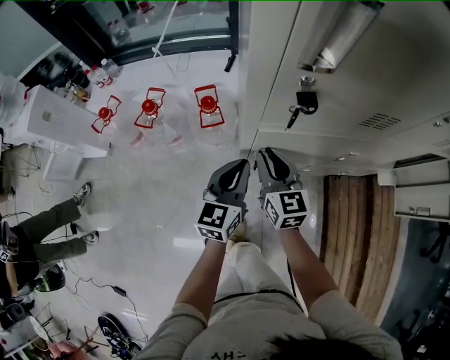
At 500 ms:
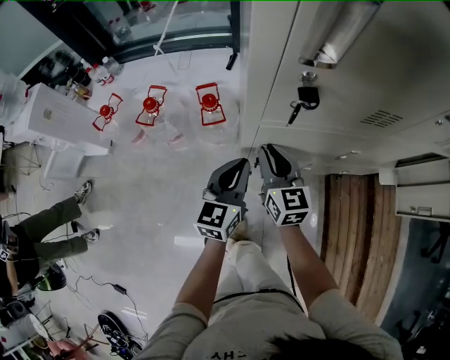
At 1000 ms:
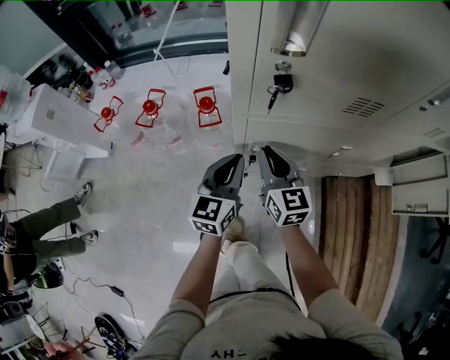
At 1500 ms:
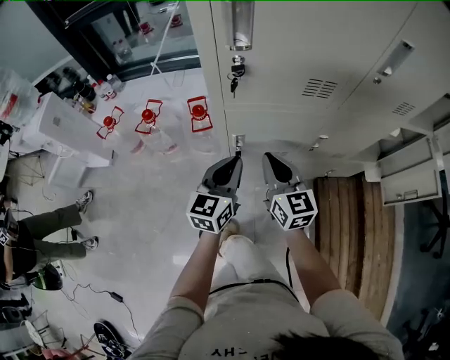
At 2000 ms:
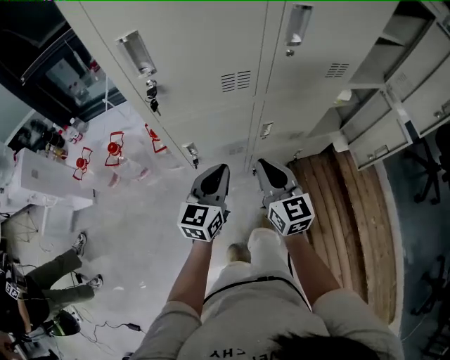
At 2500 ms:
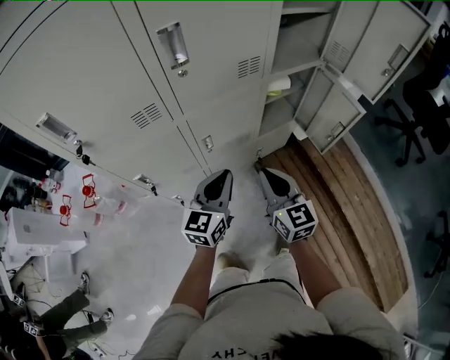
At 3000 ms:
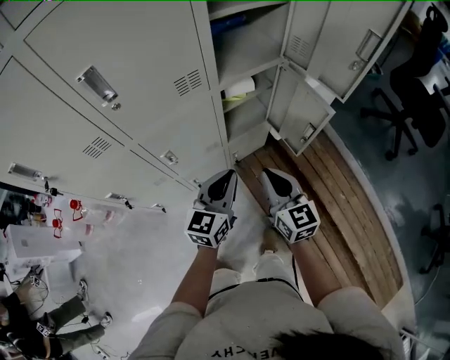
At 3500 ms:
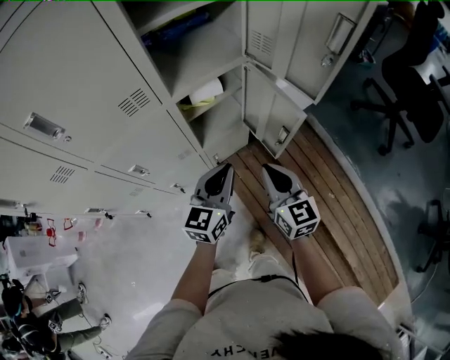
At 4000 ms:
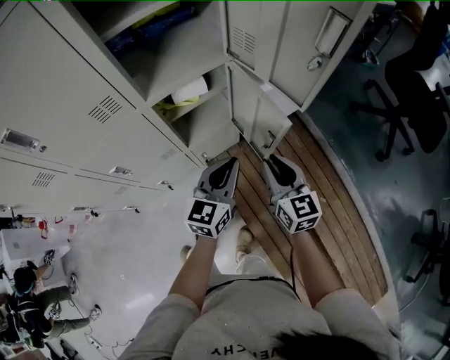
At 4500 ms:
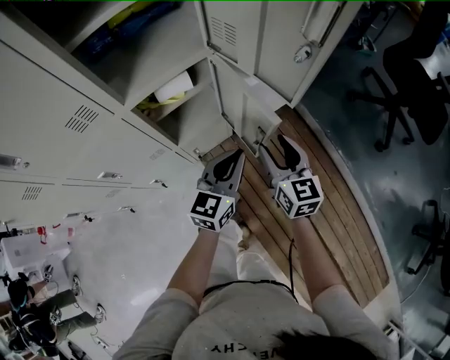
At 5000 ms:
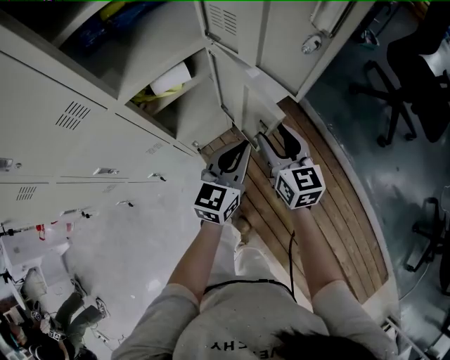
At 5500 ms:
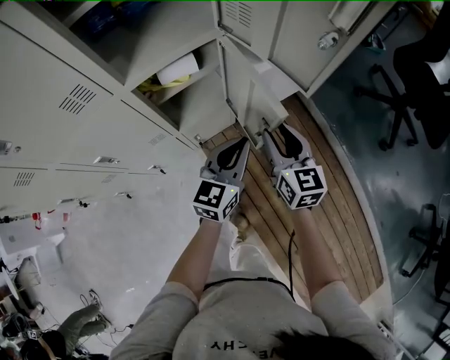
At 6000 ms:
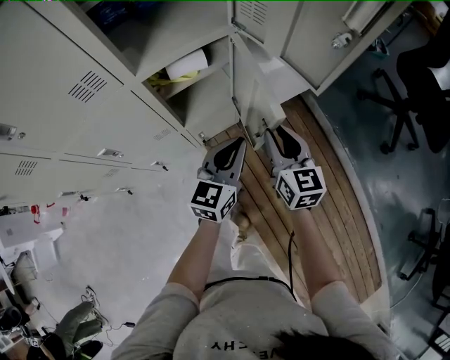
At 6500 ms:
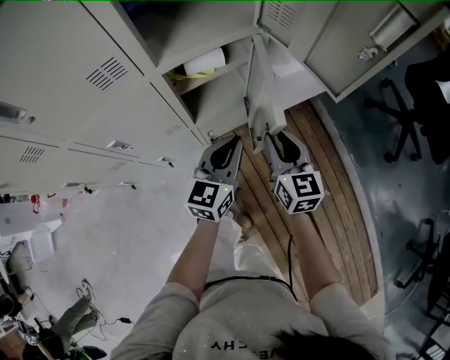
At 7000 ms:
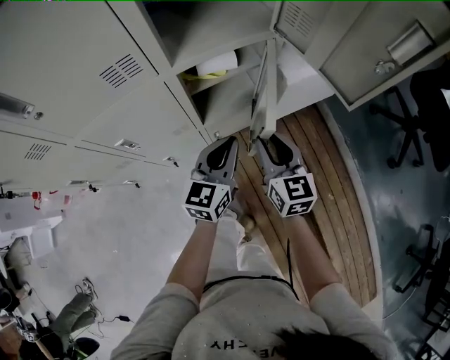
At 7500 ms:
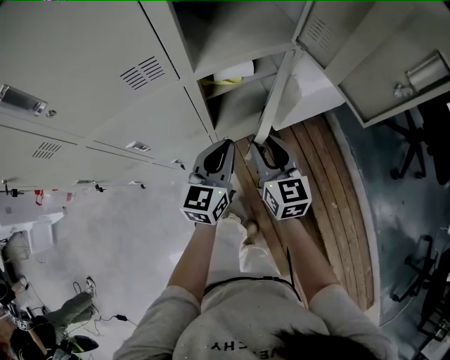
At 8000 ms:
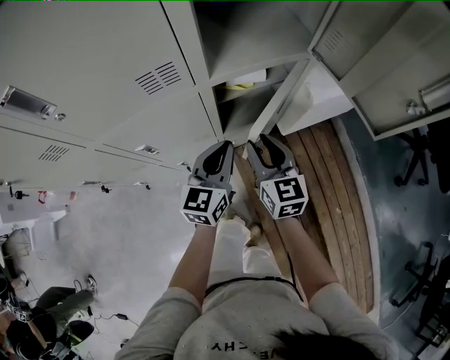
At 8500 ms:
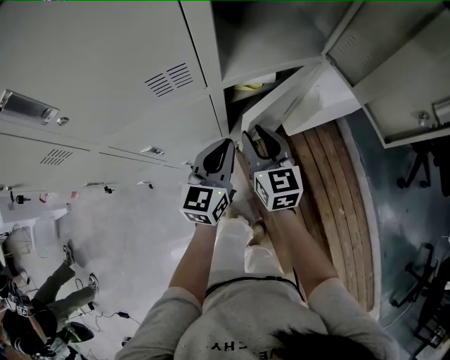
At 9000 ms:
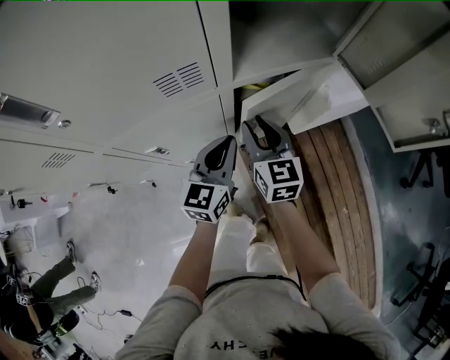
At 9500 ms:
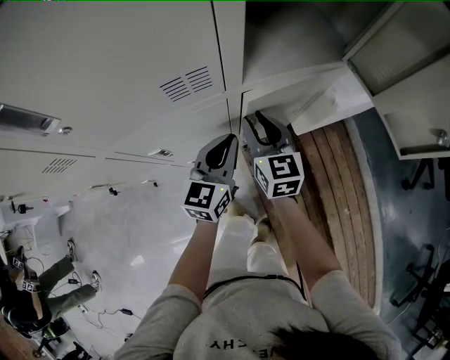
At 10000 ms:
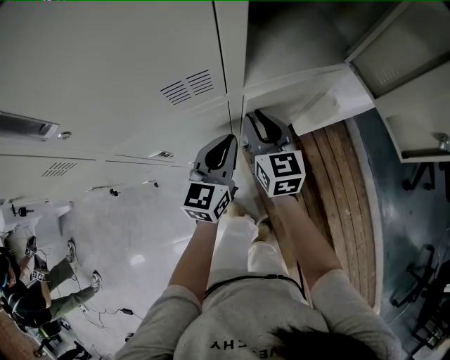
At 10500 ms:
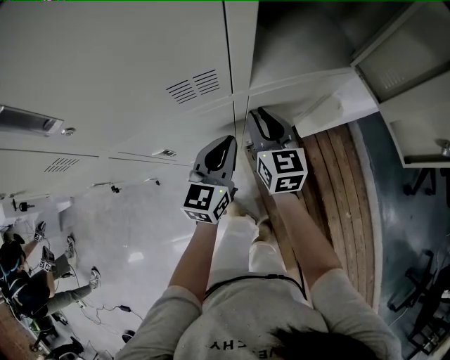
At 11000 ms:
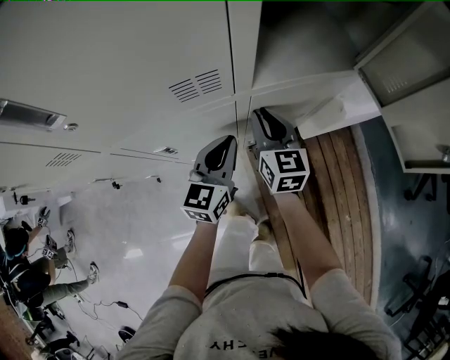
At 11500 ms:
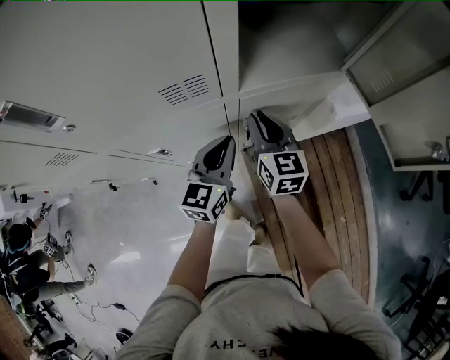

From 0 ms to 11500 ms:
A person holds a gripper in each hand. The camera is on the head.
From 0 ms to 2000 ms: The two grippers go roughly 25 cm to the right, backward and upward.
From 2000 ms to 4000 ms: The two grippers travel together, to the right, about 60 cm. The right gripper turns by approximately 20 degrees. The left gripper turns by roughly 20 degrees.
From 4000 ms to 6000 ms: The right gripper shifts by some 5 cm, and opens, then closes once more.
From 6000 ms to 7500 ms: Both grippers travel together to the left, about 15 cm.
From 7500 ms to 9500 ms: The two grippers go approximately 15 cm to the left and forward.
From 9500 ms to 11500 ms: The grippers move only a little.

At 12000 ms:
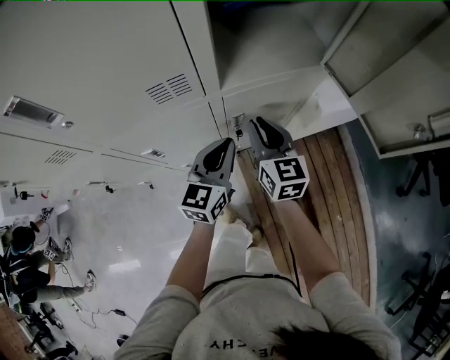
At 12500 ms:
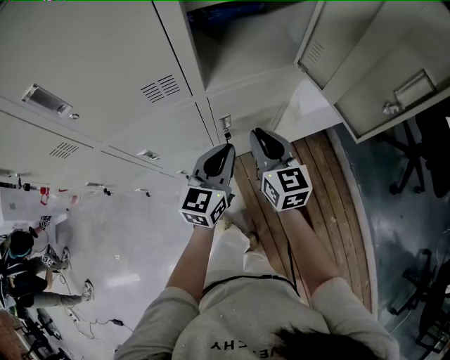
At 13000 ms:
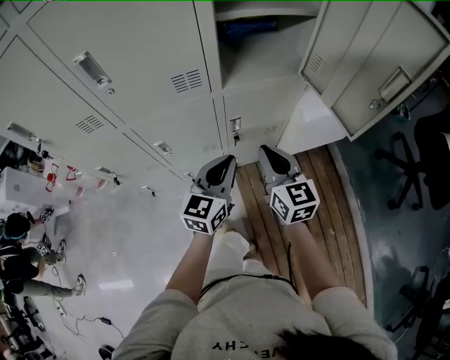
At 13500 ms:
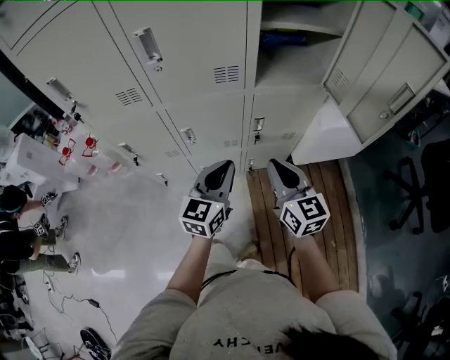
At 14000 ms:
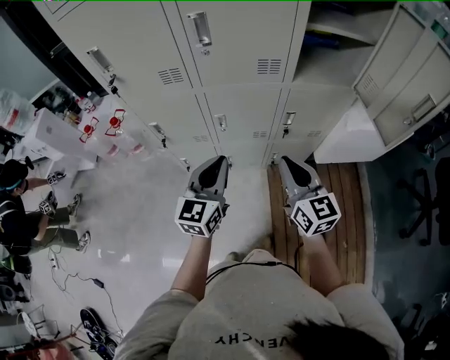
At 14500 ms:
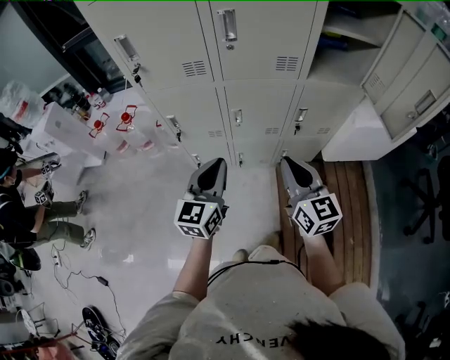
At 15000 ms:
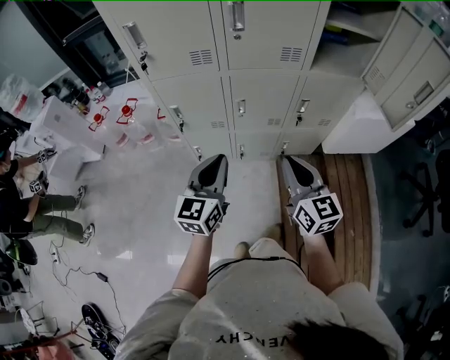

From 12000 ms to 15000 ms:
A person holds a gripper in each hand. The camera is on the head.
From 12000 ms to 13500 ms: The two grippers go some 20 cm backward and upward.
From 13500 ms to 15000 ms: The two grippers go about 20 cm to the left and backward.

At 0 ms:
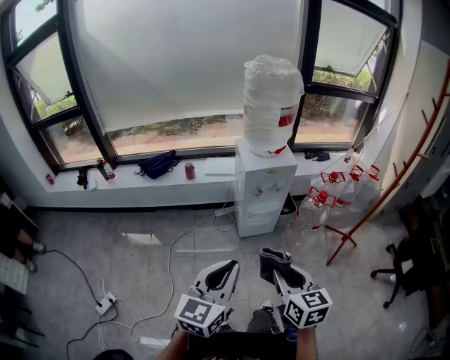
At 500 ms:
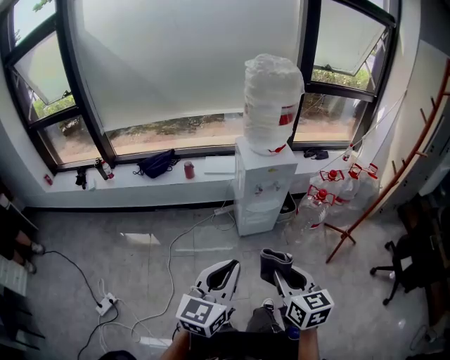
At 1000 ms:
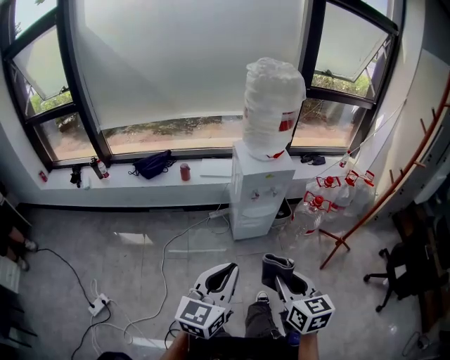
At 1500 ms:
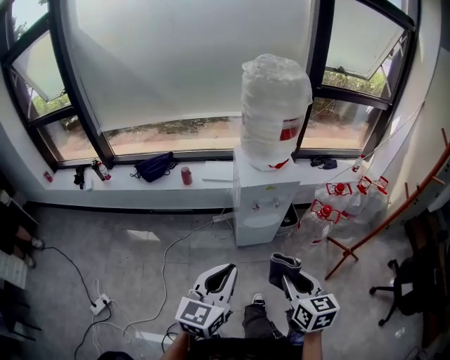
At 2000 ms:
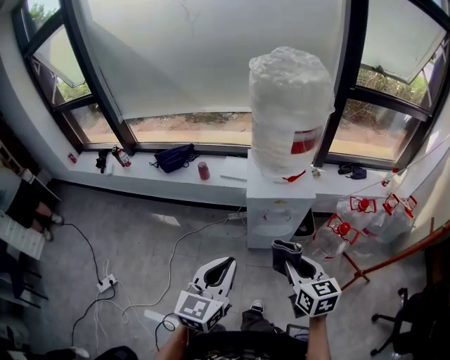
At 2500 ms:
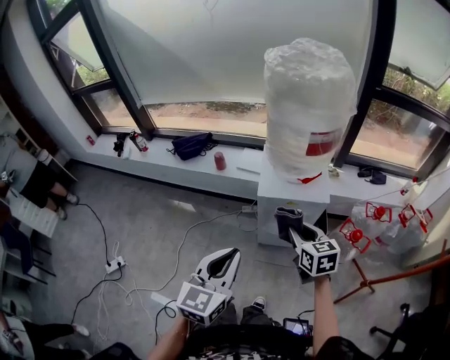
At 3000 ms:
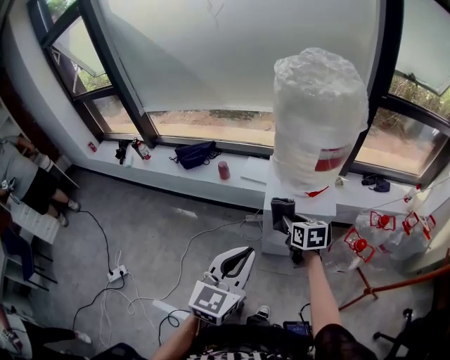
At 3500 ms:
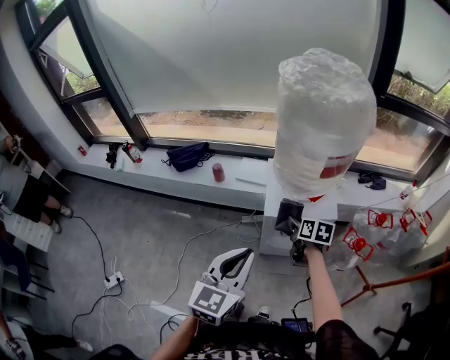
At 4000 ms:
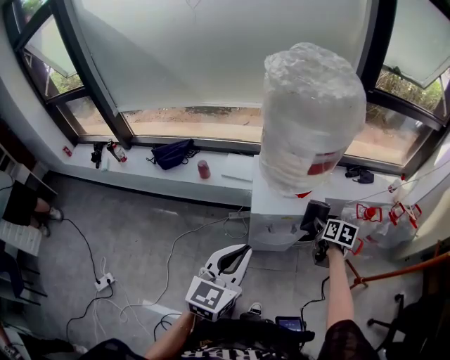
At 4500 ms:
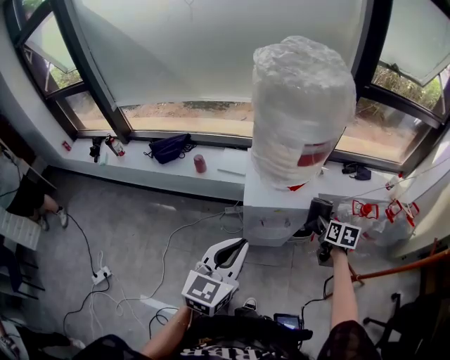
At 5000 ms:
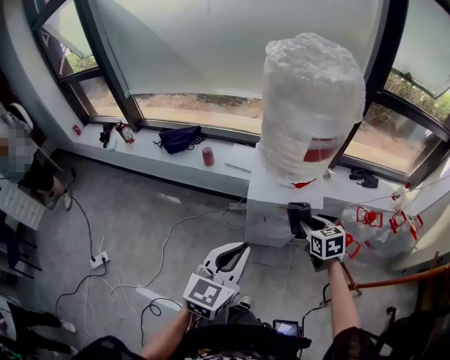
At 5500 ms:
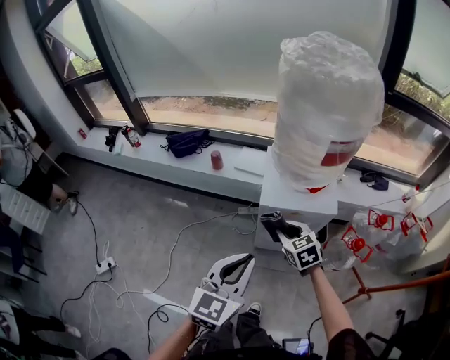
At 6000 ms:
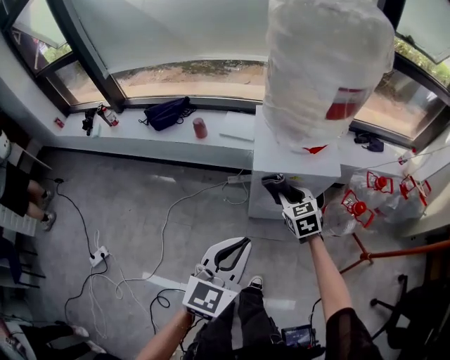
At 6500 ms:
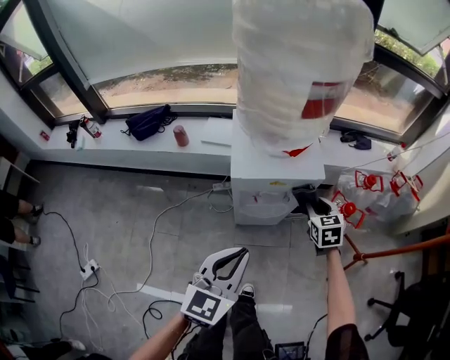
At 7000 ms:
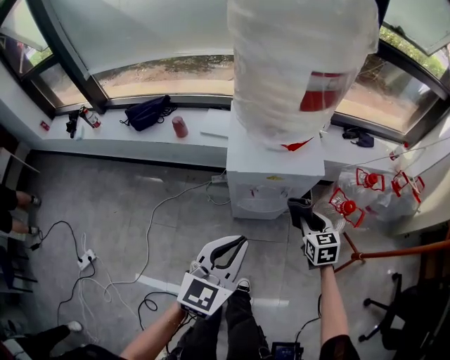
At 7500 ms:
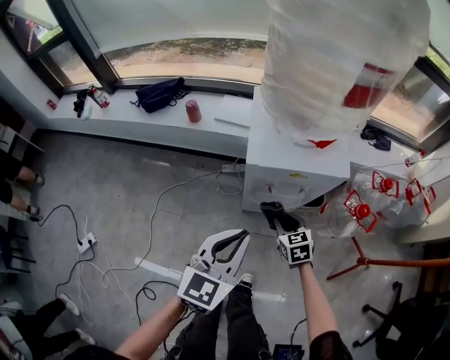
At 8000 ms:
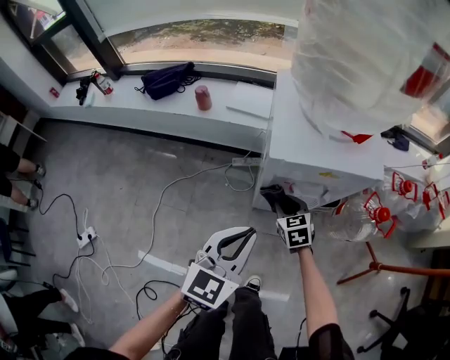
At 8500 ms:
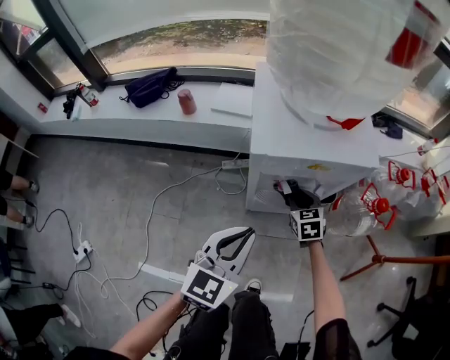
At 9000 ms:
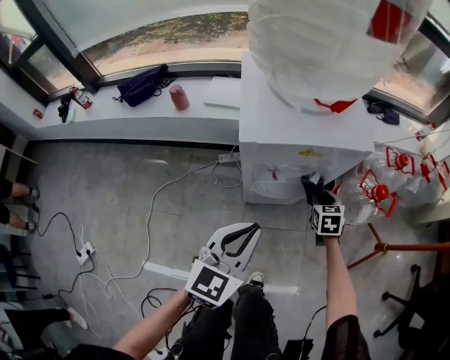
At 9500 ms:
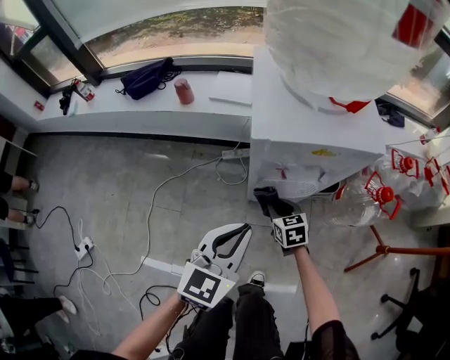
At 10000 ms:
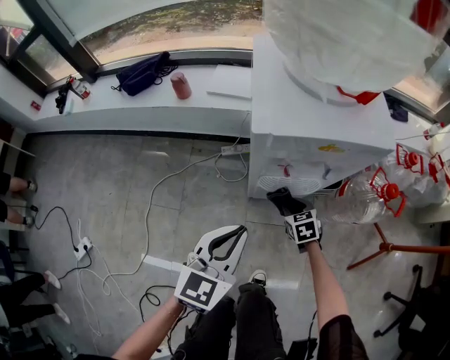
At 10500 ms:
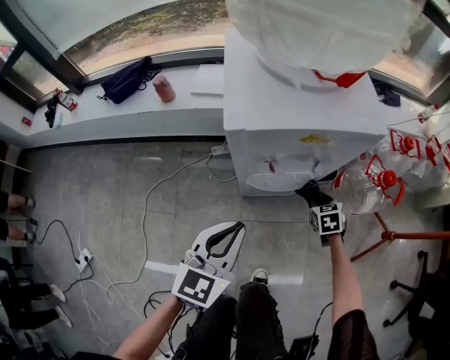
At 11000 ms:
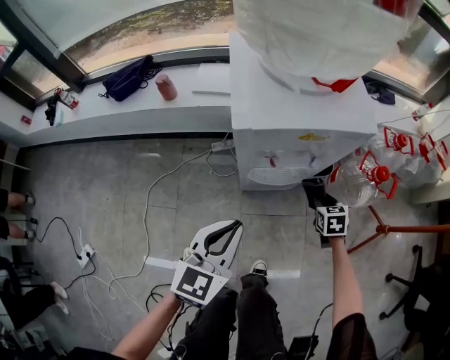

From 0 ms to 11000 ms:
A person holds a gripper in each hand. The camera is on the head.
From 0 ms to 2000 ms: The left gripper is displaced forward by some 25 cm. The right gripper goes roughly 35 cm forward and to the right.
From 2000 ms to 3500 ms: The left gripper shifts about 10 cm forward. Meanwhile the right gripper heads forward, covering some 30 cm, and changes its angle by approximately 30 degrees.
From 3500 ms to 5500 ms: The right gripper goes approximately 5 cm backward, moves some 20 cm to the right and comes back, and rotates around the line of its fingers by roughly 50 degrees, counterclockwise from behind. Meanwhile the left gripper heads downward, covering about 5 cm.
From 5500 ms to 7500 ms: Both grippers move downward, roughly 20 cm.
From 7500 ms to 9000 ms: The right gripper is displaced to the right, downward and forward by approximately 20 cm, and rotates approximately 20 degrees; the left gripper travels downward by roughly 10 cm.
From 9000 ms to 11000 ms: The right gripper shifts roughly 5 cm backward, and travels to the left and back again, roughly 15 cm each way, while the left gripper ends up approximately 5 cm from where it was.

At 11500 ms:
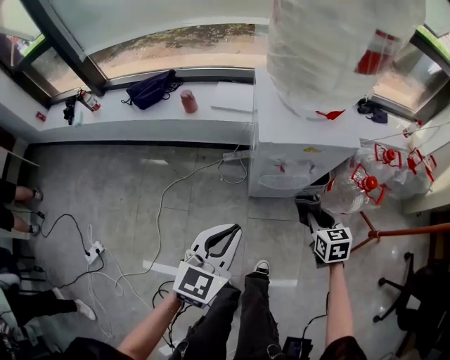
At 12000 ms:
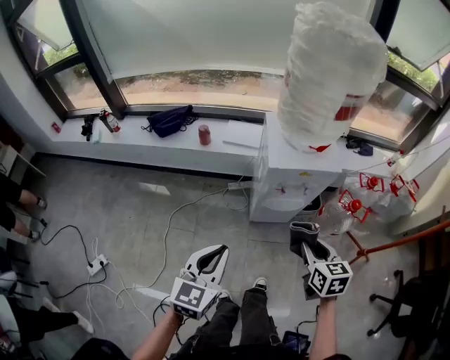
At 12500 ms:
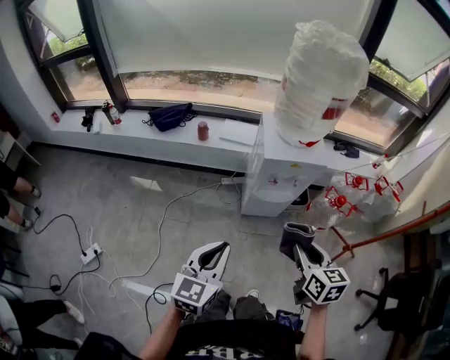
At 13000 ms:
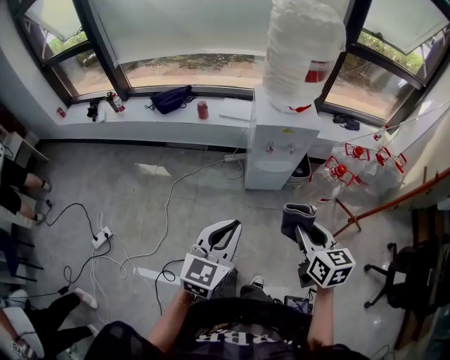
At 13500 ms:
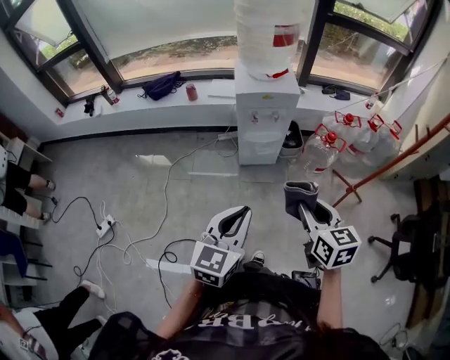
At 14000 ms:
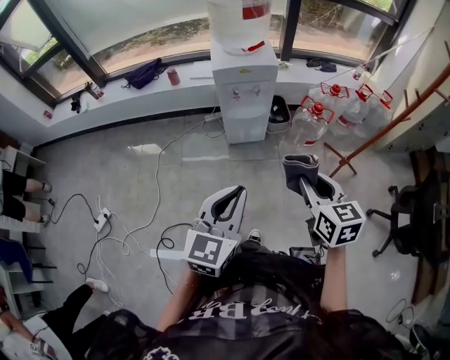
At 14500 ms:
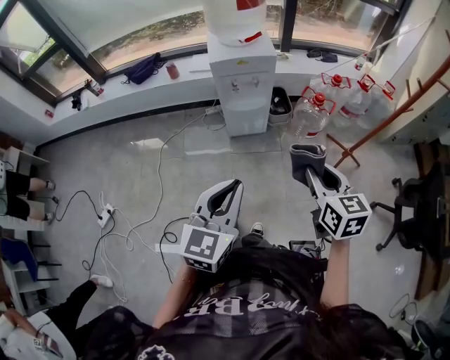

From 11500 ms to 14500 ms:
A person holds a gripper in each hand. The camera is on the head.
From 11500 ms to 13000 ms: The left gripper moves backward and upward, approximately 30 cm; the right gripper moves upward and backward, roughly 40 cm.
From 13000 ms to 14500 ms: The grippers both shift to the right and backward by some 20 cm.
